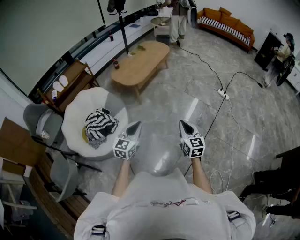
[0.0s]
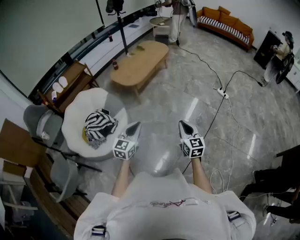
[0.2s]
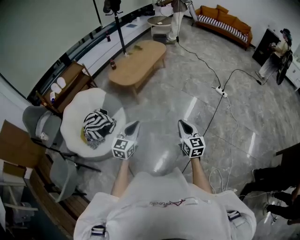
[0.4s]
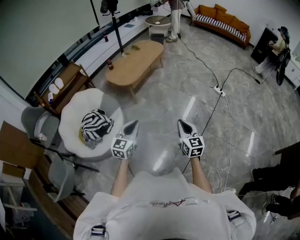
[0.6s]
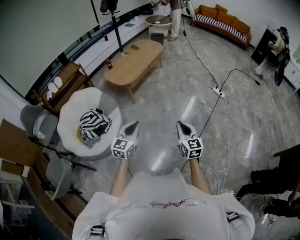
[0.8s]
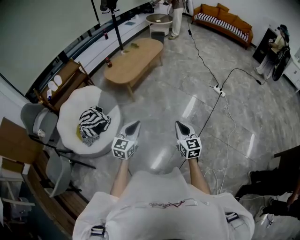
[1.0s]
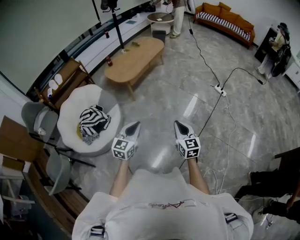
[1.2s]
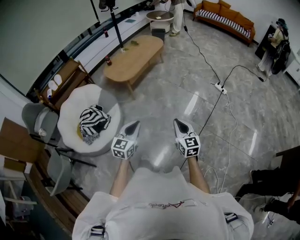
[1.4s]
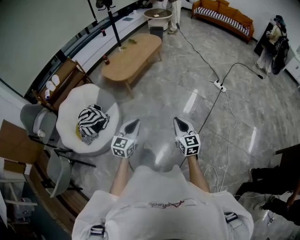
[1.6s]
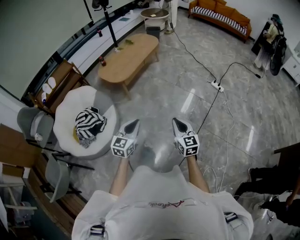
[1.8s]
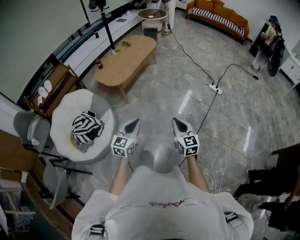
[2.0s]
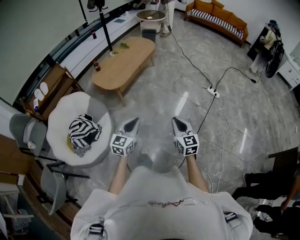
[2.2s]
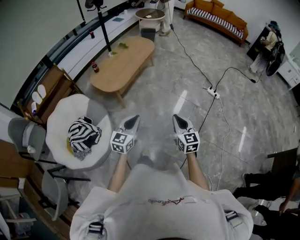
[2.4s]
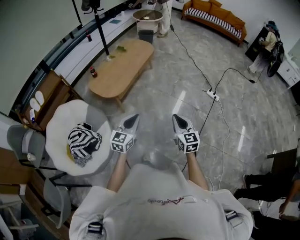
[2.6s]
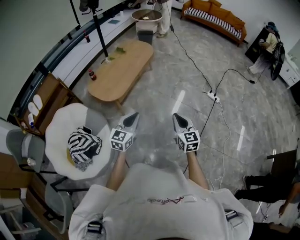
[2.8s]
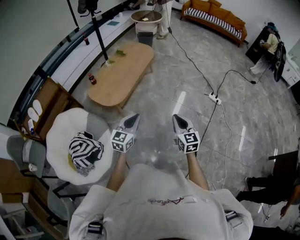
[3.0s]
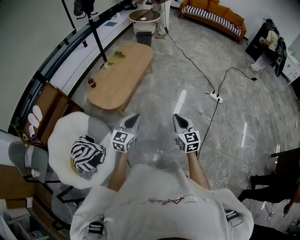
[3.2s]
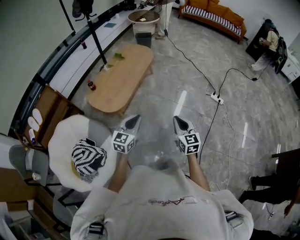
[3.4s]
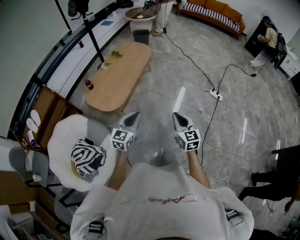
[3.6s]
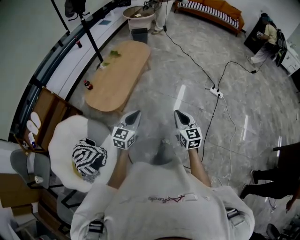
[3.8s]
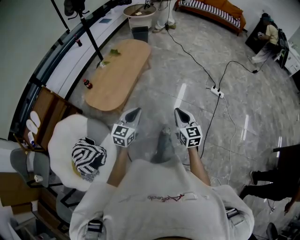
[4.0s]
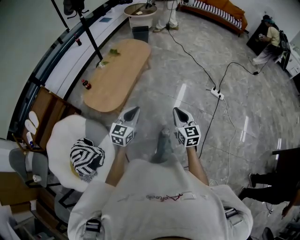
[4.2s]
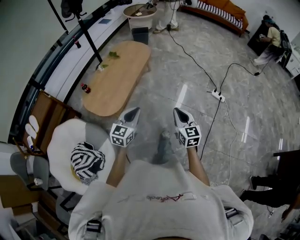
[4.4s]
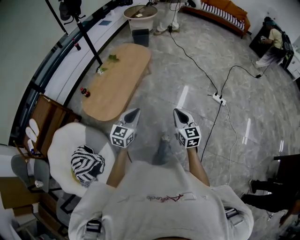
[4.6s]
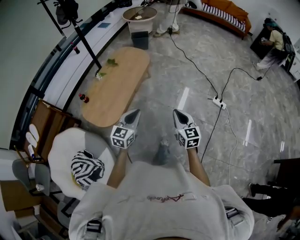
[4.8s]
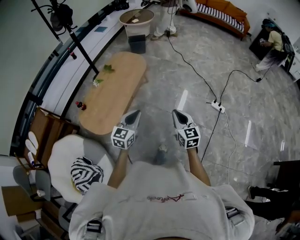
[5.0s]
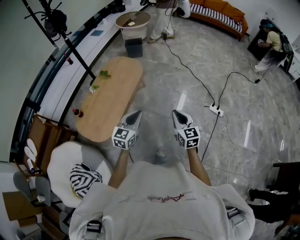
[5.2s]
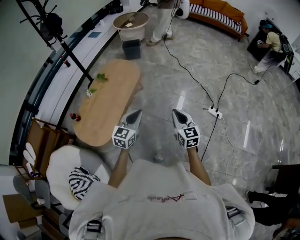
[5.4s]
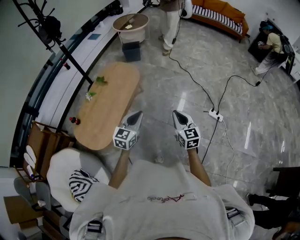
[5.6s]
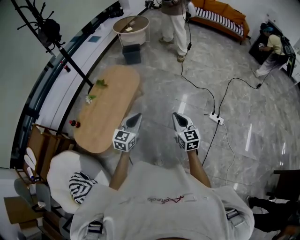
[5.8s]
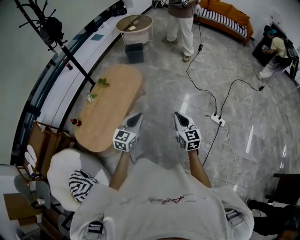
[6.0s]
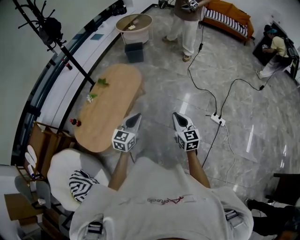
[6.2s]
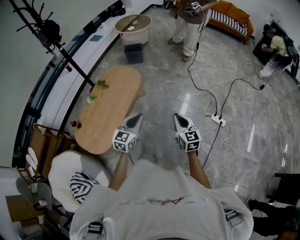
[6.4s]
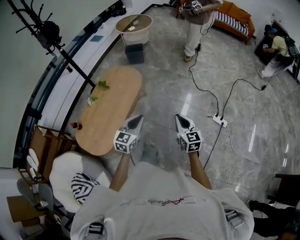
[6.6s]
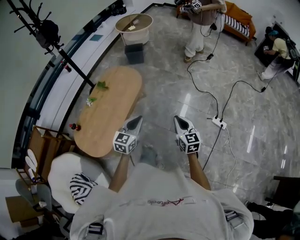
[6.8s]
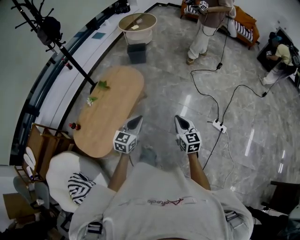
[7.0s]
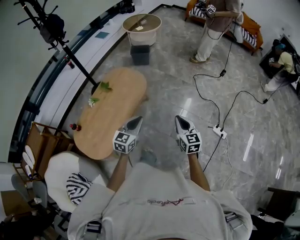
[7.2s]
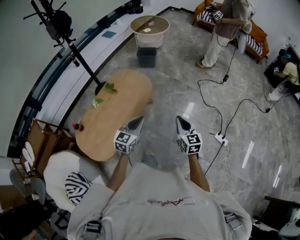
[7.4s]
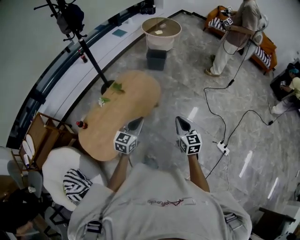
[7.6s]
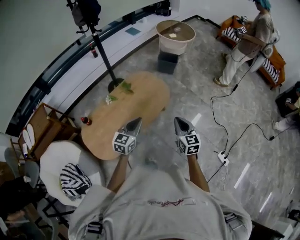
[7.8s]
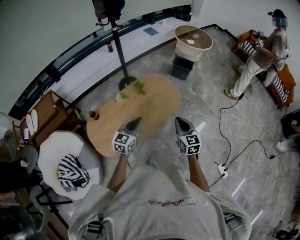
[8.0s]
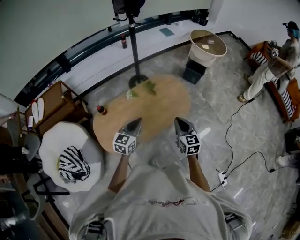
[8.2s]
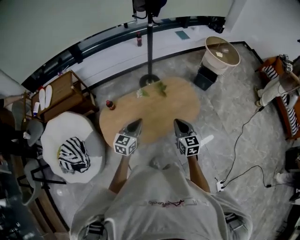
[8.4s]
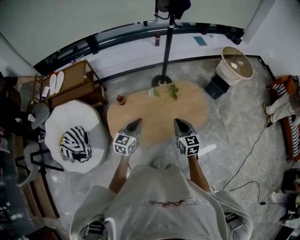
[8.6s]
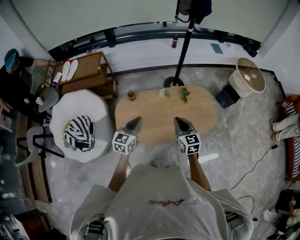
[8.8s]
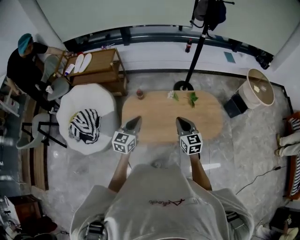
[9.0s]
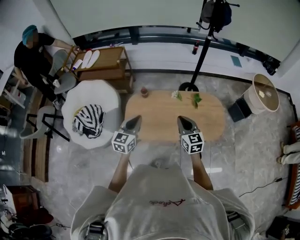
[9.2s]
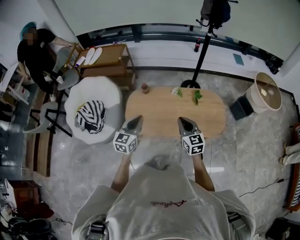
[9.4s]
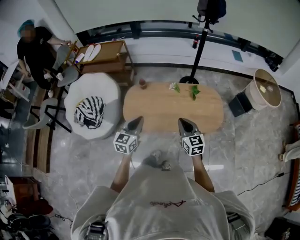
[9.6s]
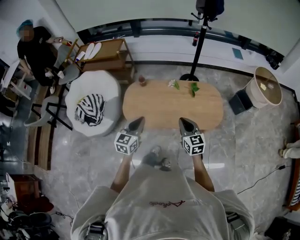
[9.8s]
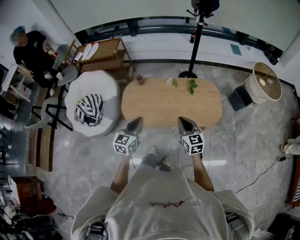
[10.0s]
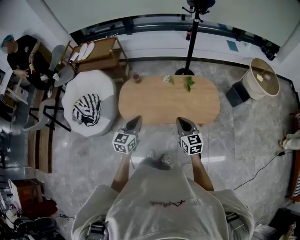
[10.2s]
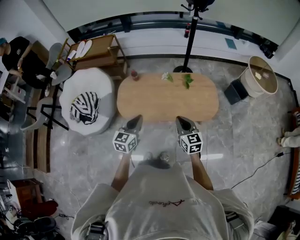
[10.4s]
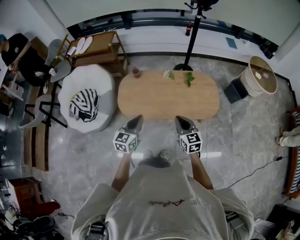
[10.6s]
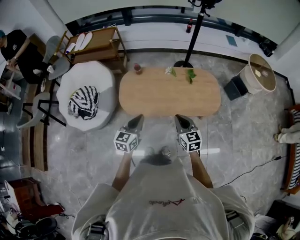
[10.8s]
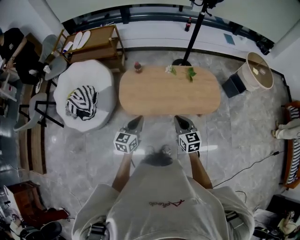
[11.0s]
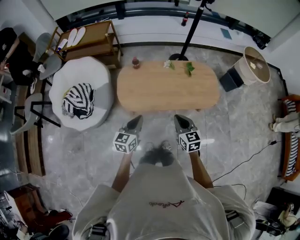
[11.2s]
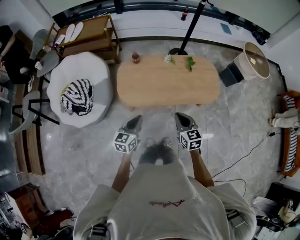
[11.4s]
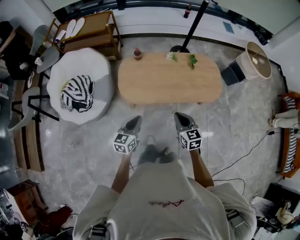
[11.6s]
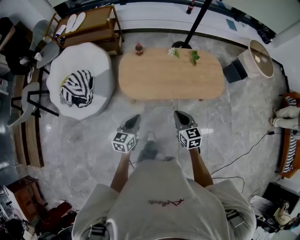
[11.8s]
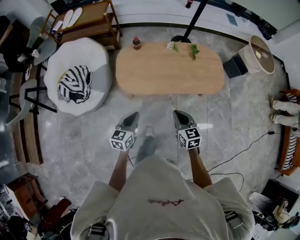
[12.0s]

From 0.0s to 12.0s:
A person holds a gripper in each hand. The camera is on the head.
From 0.0s to 1.6s: Both grippers move to the right, some 15 cm.
From 1.6s to 3.0s: Both grippers move forward, about 40 cm.
From 3.0s to 4.4s: The grippers both shift forward by roughly 20 cm.
From 4.4s to 6.0s: Both grippers travel together forward, some 35 cm.
From 6.0s to 7.6s: The grippers both shift forward and to the left by some 25 cm.
From 7.6s to 9.0s: The left gripper shifts by roughly 35 cm, and turns by some 60 degrees; the right gripper shifts by approximately 40 cm, and turns by some 50 degrees.
From 9.0s to 10.4s: The grippers both shift backward and to the right by roughly 20 cm.
From 10.4s to 12.0s: The grippers both shift to the left, downward and backward by approximately 20 cm.

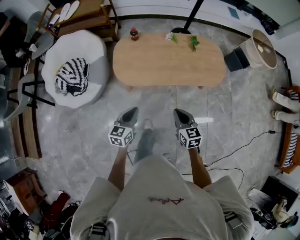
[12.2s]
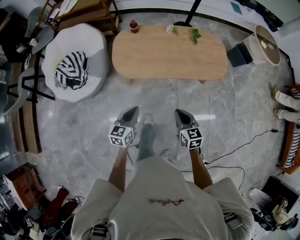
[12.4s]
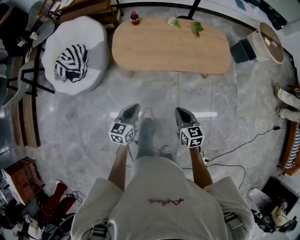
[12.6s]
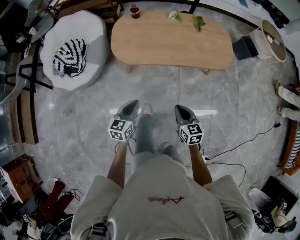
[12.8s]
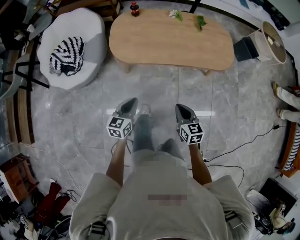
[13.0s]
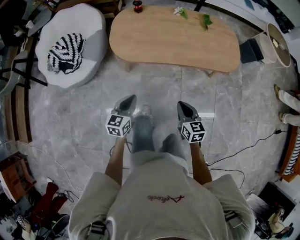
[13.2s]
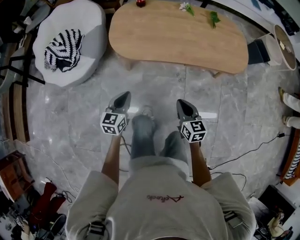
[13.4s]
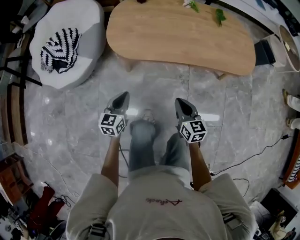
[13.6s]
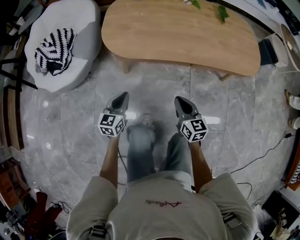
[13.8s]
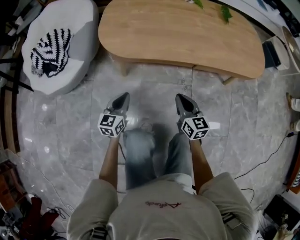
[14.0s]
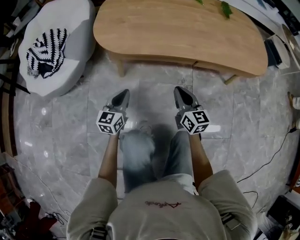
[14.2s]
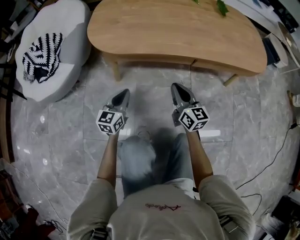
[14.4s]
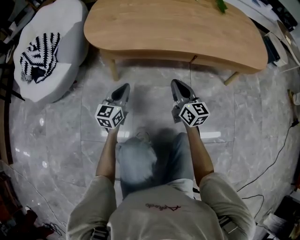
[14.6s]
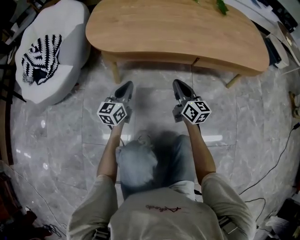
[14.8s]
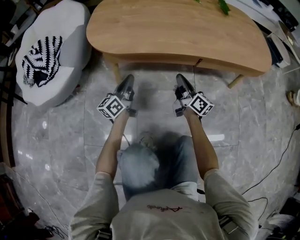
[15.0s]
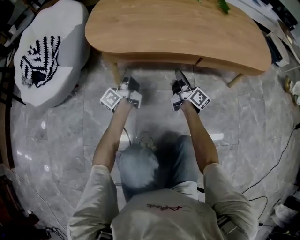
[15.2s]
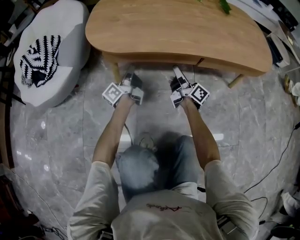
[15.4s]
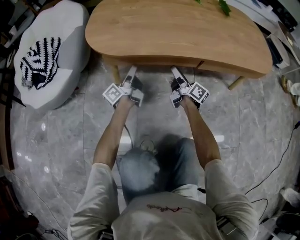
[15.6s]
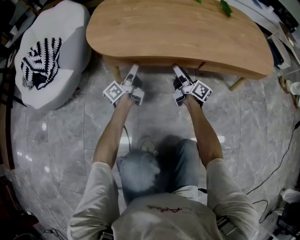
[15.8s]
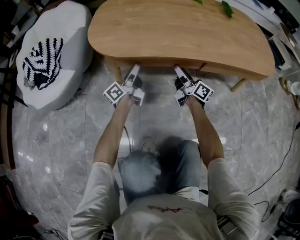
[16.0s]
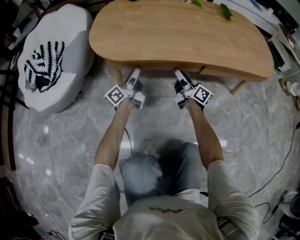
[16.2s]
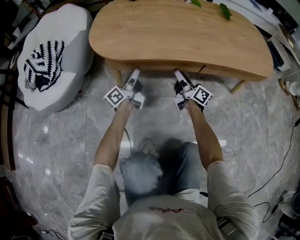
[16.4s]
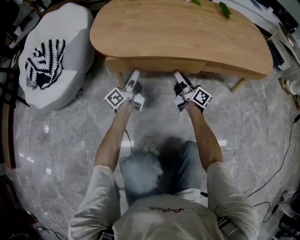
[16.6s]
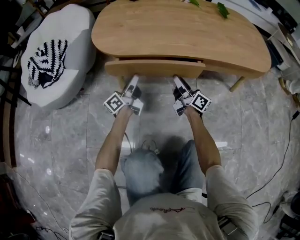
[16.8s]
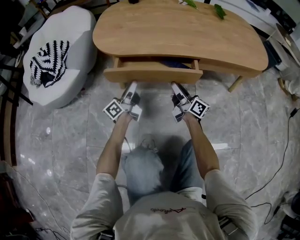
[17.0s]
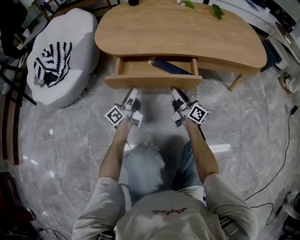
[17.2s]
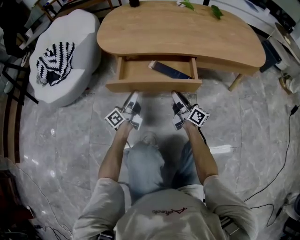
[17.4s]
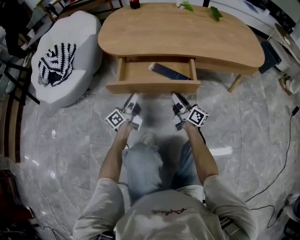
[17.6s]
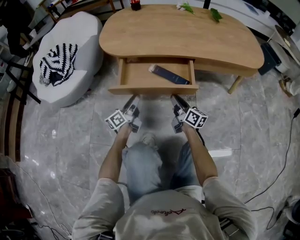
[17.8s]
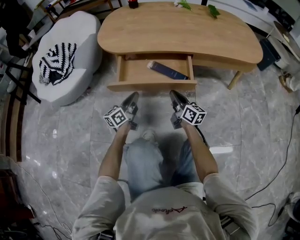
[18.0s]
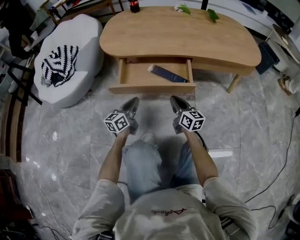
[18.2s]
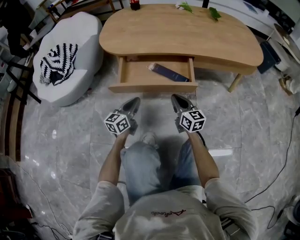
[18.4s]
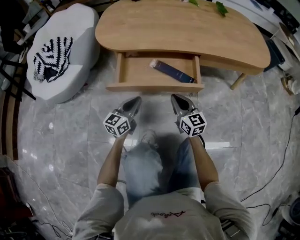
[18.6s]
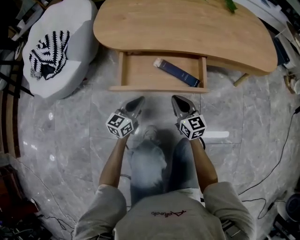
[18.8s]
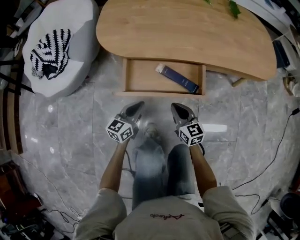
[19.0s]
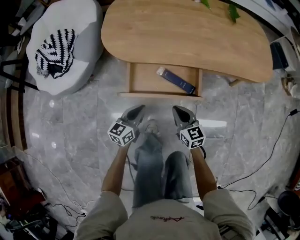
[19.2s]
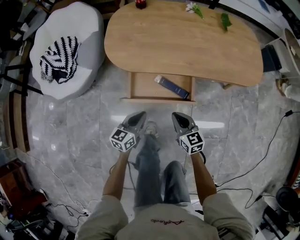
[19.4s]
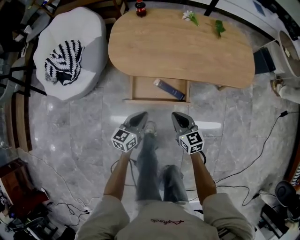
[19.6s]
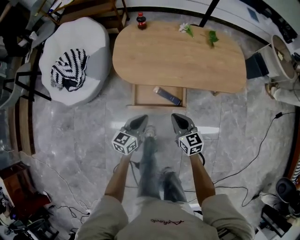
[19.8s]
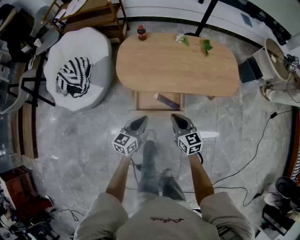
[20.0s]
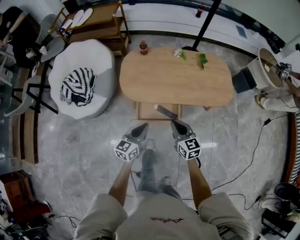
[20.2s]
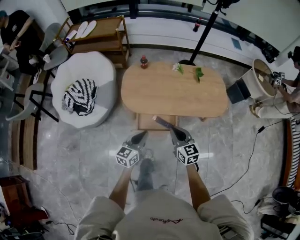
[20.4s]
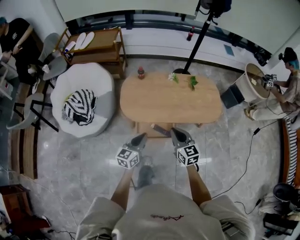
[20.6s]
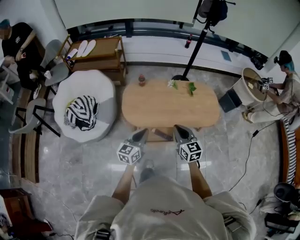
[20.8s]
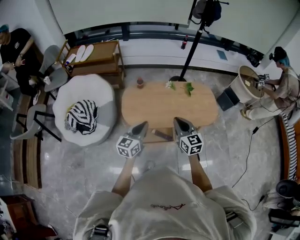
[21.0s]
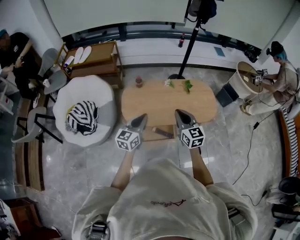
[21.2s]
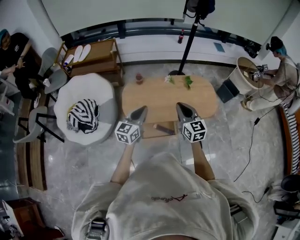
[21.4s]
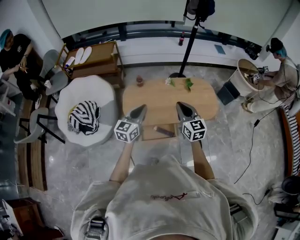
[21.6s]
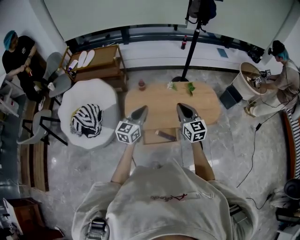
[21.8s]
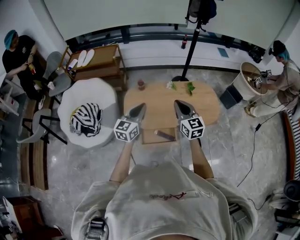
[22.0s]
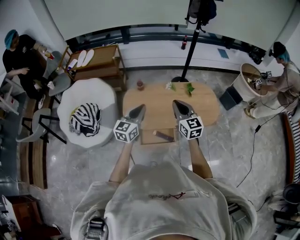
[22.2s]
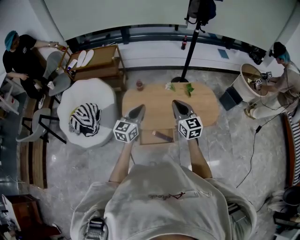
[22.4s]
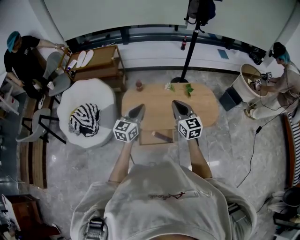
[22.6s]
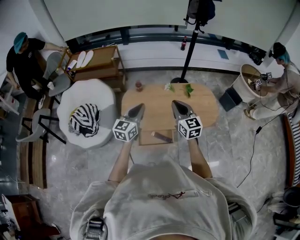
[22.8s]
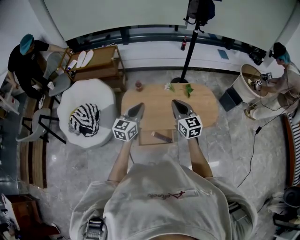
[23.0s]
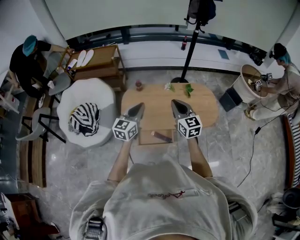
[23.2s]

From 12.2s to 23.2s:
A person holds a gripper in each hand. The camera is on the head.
From 12.2s to 13.8s: The two grippers go roughly 40 cm downward.
From 13.8s to 15.4s: The right gripper goes about 25 cm downward and forward, tips its fingers upward by some 30 degrees, and opens its fingers. Meanwhile the left gripper is displaced forward and downward by approximately 25 cm, and twists about 60 degrees counterclockwise, seen from behind.
From 15.4s to 17.0s: The grippers both shift backward by some 10 cm. The right gripper opens, then closes again. Meanwhile the left gripper opens its fingers.
From 17.0s to 18.4s: Both grippers travel together backward, roughly 10 cm. The right gripper swivels some 40 degrees, and closes; the left gripper swivels some 40 degrees, and closes up.
From 18.4s to 20.0s: Both grippers move upward, approximately 50 cm.
From 20.0s to 21.6s: Both grippers move upward, about 35 cm. The right gripper changes its angle by approximately 20 degrees.
From 21.6s to 23.2s: The right gripper changes place by about 5 cm. The left gripper moves approximately 5 cm.

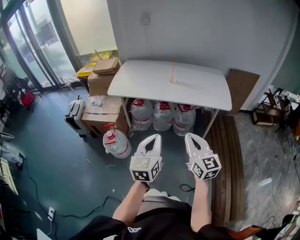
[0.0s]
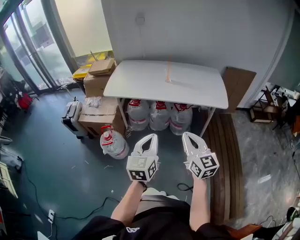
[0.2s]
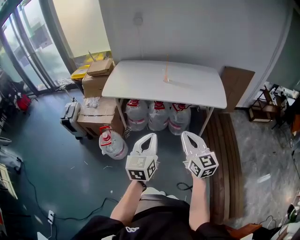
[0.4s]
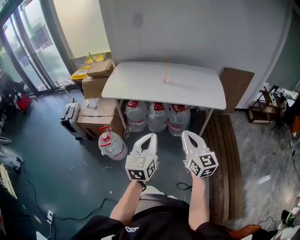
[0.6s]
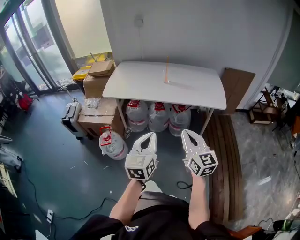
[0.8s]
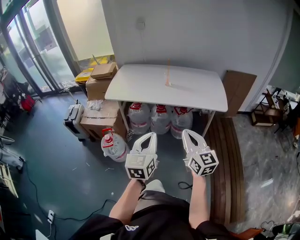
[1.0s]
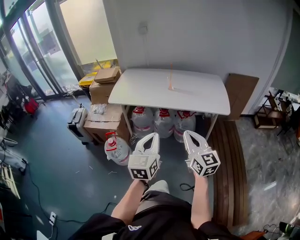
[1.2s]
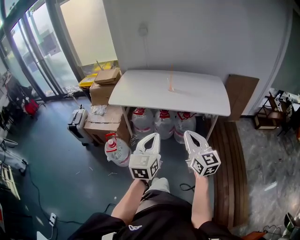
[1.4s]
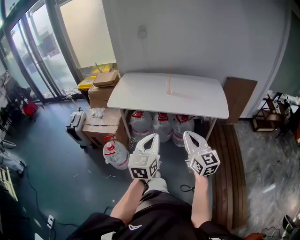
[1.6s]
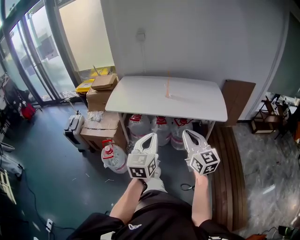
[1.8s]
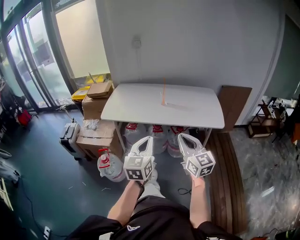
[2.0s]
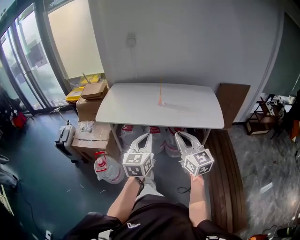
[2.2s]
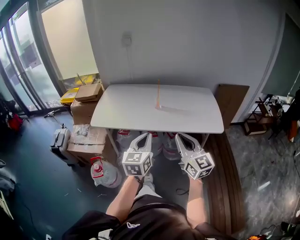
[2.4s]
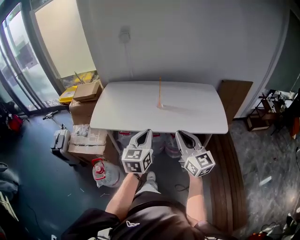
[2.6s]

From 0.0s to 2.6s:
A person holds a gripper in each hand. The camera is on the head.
From 0.0s to 1.2s: The grippers stay close to where they were, moving slightly.
From 1.2s to 2.6s: The grippers both shift forward by roughly 25 cm.
